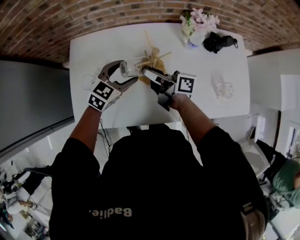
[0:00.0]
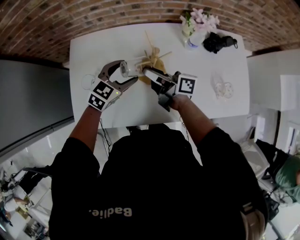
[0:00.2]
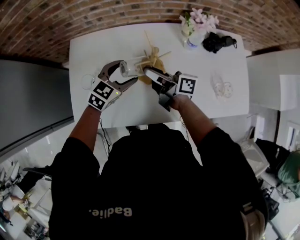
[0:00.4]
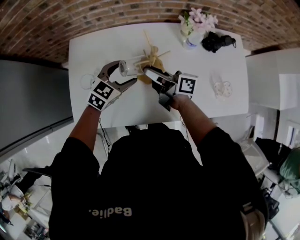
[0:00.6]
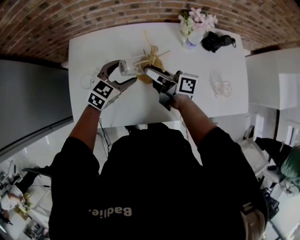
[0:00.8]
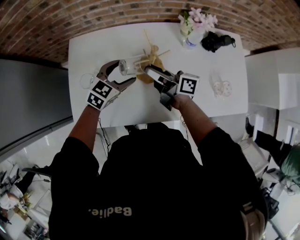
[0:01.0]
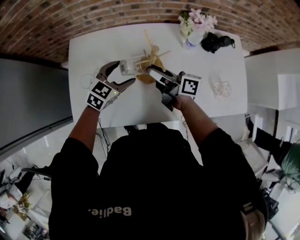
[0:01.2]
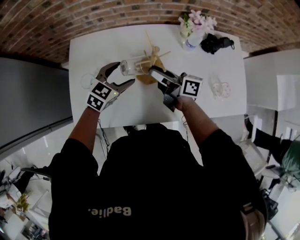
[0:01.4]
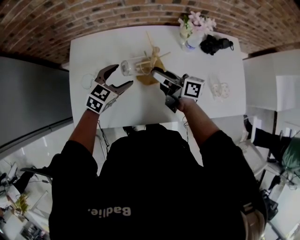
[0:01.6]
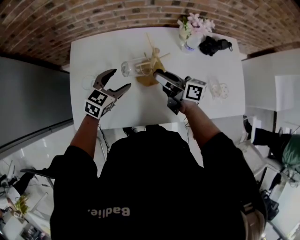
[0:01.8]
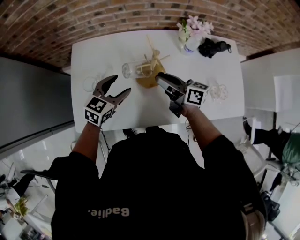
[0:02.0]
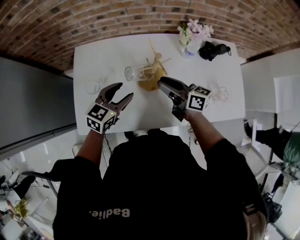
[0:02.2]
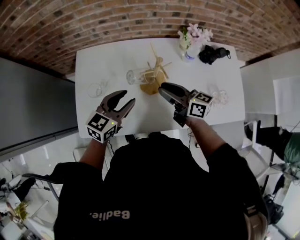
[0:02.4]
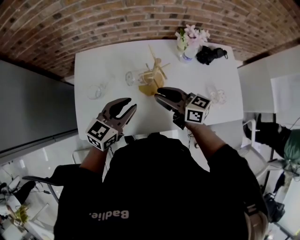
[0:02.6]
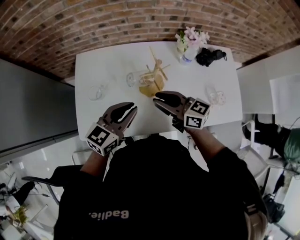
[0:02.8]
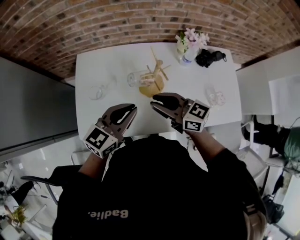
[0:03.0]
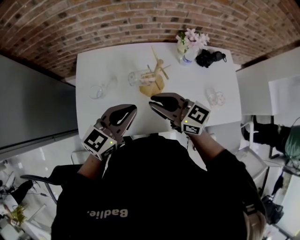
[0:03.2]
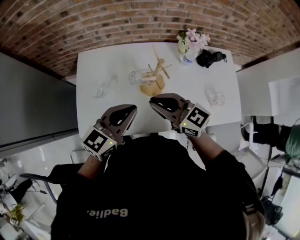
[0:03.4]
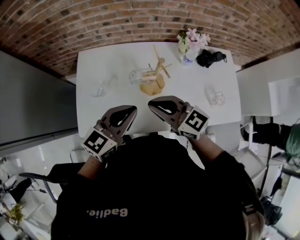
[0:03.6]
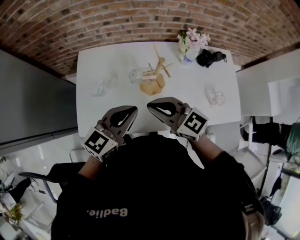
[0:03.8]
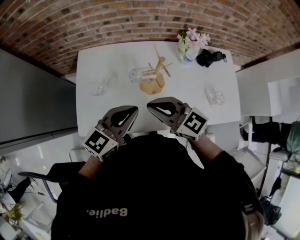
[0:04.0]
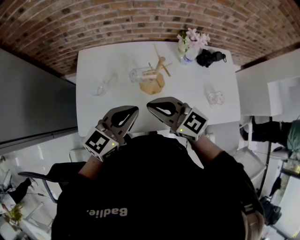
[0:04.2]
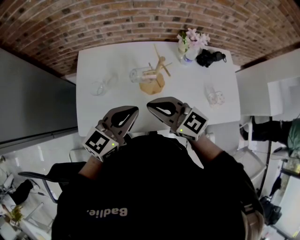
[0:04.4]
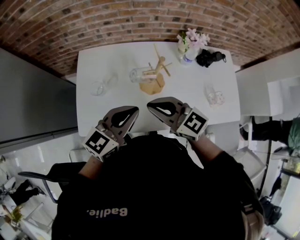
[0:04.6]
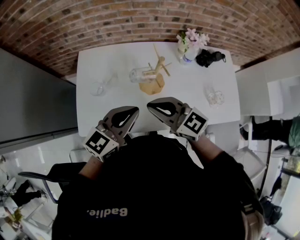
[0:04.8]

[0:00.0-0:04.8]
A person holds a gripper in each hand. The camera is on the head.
0:00.0 to 0:01.6: The grippers stay close to where they were, moving slightly.
0:01.6 to 0:03.2: The right gripper travels upward, backward and to the left by approximately 15 cm, and rotates around the line of its fingers by about 40 degrees, counterclockwise from behind. The left gripper heads upward and backward, covering approximately 20 cm, changes its angle by roughly 30 degrees, and closes.
0:03.2 to 0:04.8: The grippers move only a little.

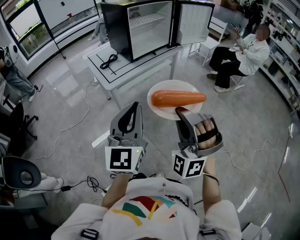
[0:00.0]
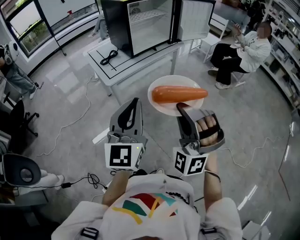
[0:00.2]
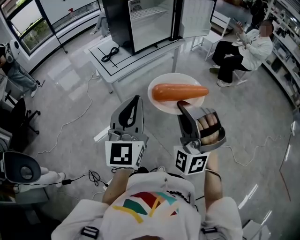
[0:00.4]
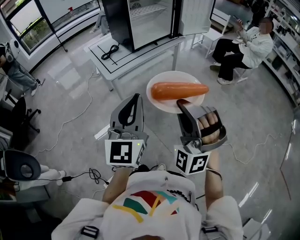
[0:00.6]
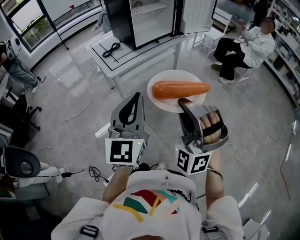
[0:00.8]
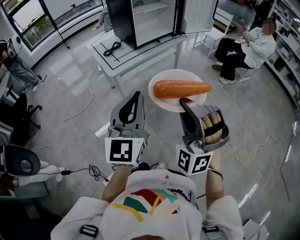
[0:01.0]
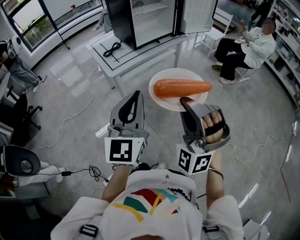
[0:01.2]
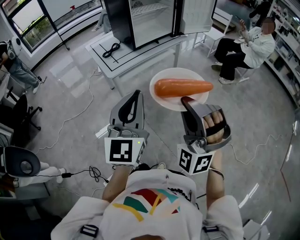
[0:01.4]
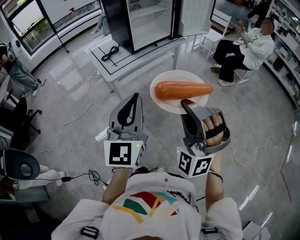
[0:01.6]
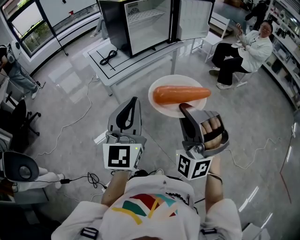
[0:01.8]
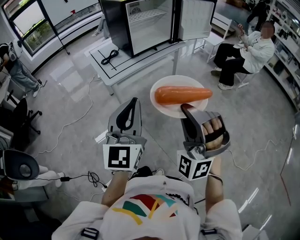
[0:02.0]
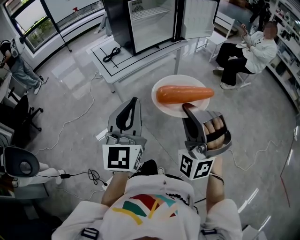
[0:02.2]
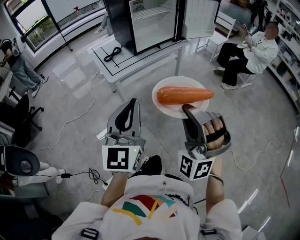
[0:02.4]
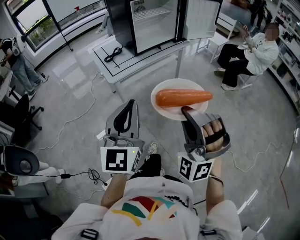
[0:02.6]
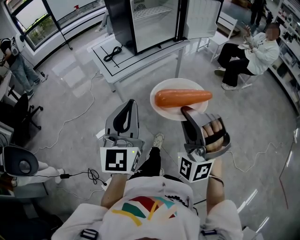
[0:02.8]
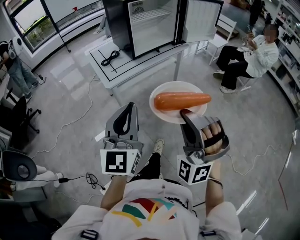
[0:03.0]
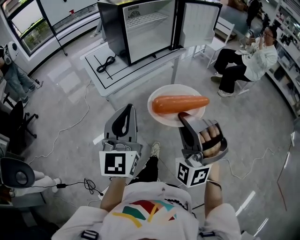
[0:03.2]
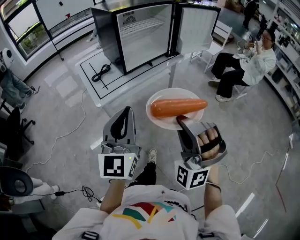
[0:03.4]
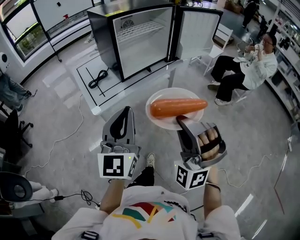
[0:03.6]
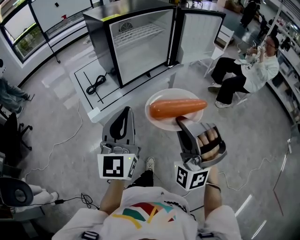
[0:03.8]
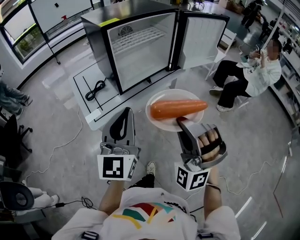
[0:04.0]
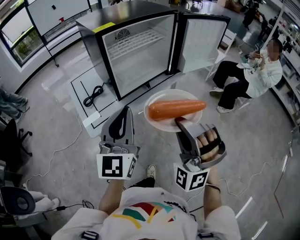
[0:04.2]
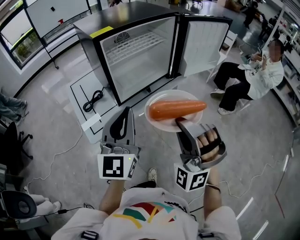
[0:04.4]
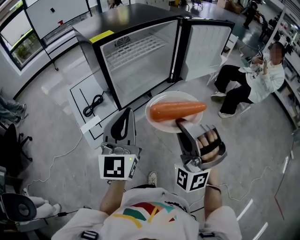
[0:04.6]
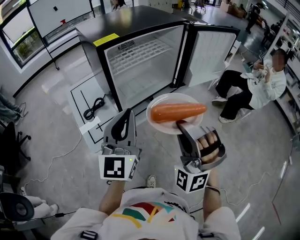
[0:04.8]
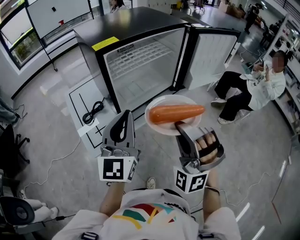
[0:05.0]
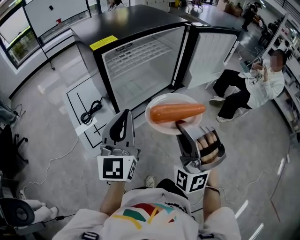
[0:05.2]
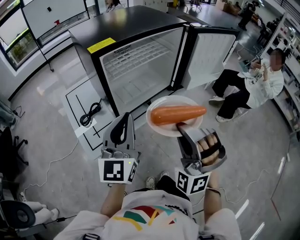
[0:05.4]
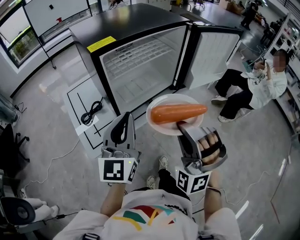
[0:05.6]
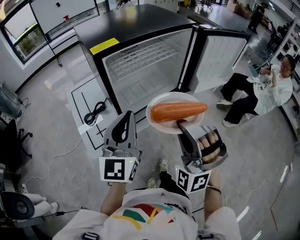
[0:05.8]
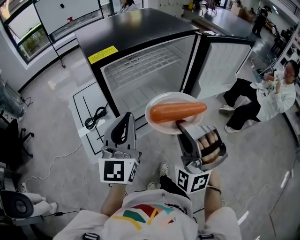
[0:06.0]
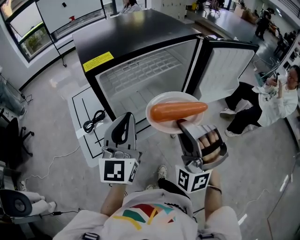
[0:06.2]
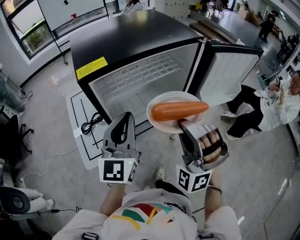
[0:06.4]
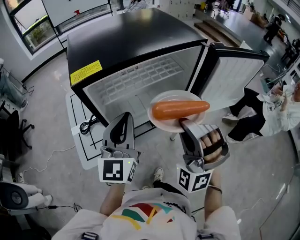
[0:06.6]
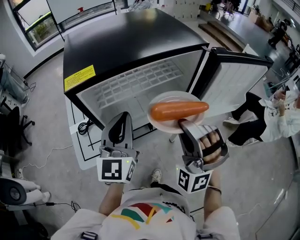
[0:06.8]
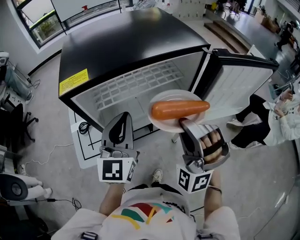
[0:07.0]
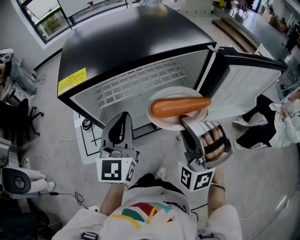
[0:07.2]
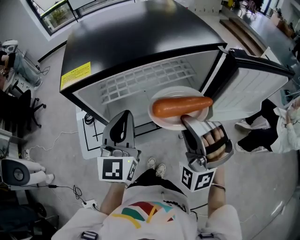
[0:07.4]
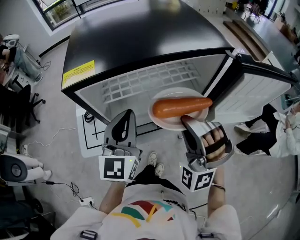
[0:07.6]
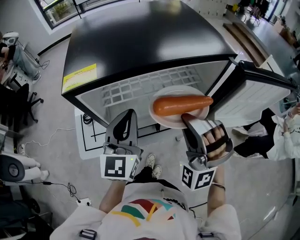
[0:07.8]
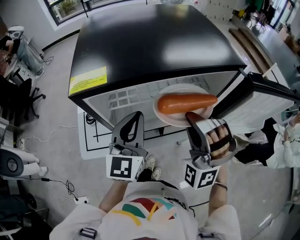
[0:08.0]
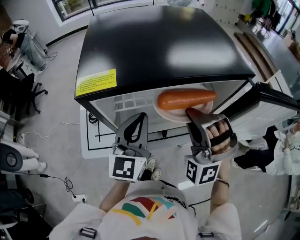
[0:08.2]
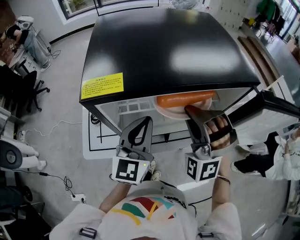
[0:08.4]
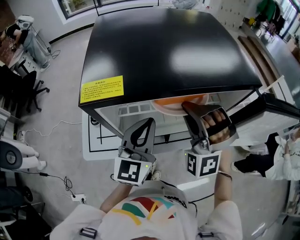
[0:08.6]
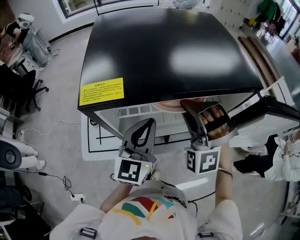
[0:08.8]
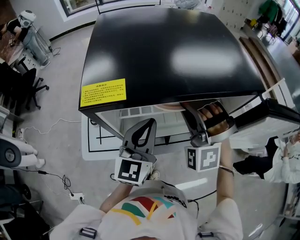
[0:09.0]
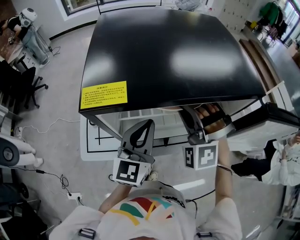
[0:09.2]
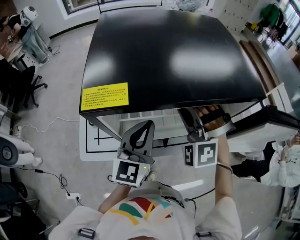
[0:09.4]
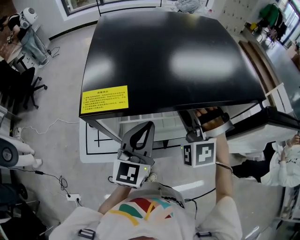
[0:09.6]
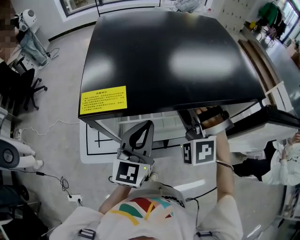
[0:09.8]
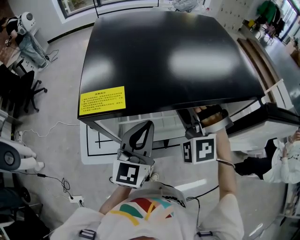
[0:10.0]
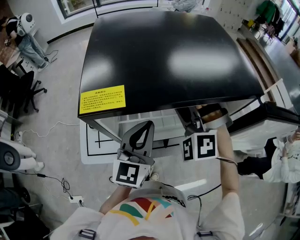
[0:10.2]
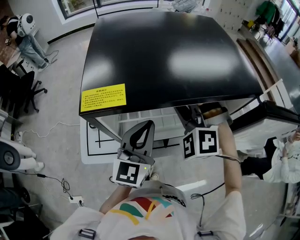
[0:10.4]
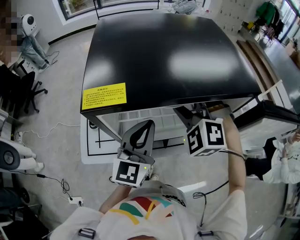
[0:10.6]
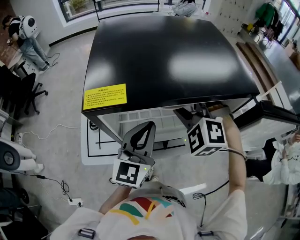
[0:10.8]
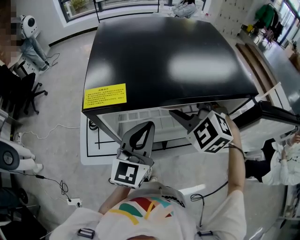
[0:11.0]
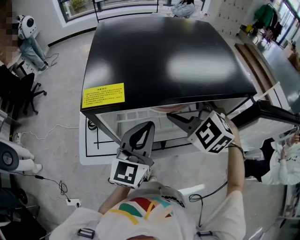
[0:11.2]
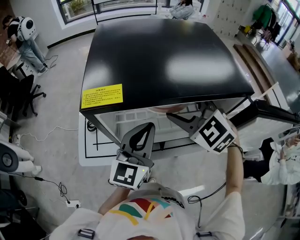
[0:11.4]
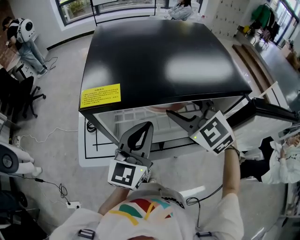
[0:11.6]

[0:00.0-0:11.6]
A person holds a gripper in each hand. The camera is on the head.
0:00.0 to 0:02.8: There are only small adjustments of the grippers.
0:02.8 to 0:04.4: The two grippers go some 35 cm forward.
0:04.4 to 0:05.8: Both grippers travel together forward, about 10 cm.
0:05.8 to 0:07.2: The grippers both shift forward by about 15 cm.
0:07.2 to 0:08.8: The right gripper goes some 15 cm forward and to the left, while the left gripper goes about 5 cm forward.
0:08.8 to 0:10.2: The grippers stay close to where they were, moving slightly.
0:10.2 to 0:11.6: The right gripper twists about 40 degrees clockwise, seen from behind, and opens its fingers.

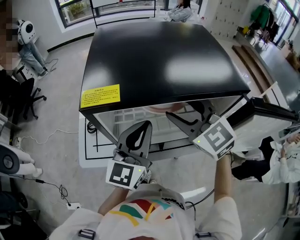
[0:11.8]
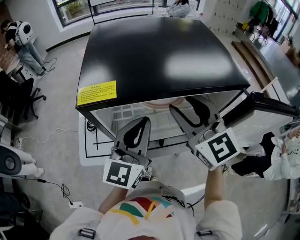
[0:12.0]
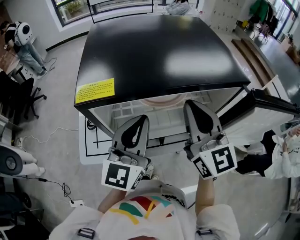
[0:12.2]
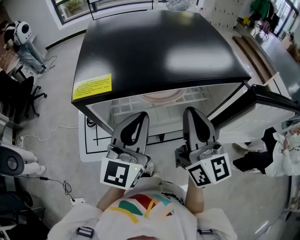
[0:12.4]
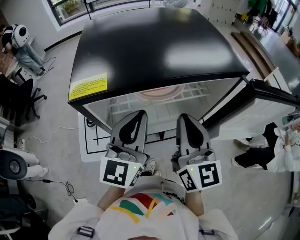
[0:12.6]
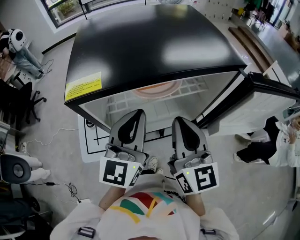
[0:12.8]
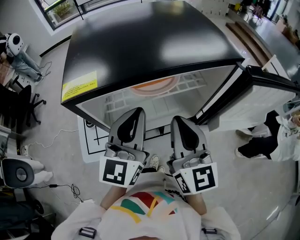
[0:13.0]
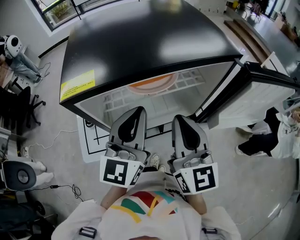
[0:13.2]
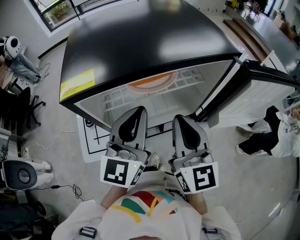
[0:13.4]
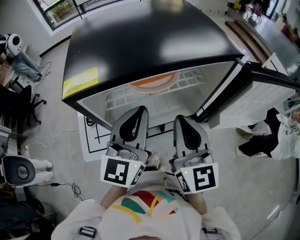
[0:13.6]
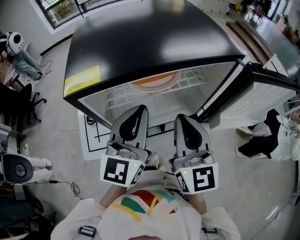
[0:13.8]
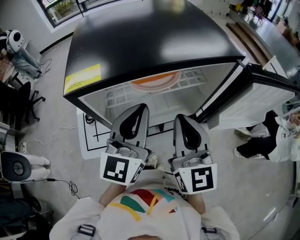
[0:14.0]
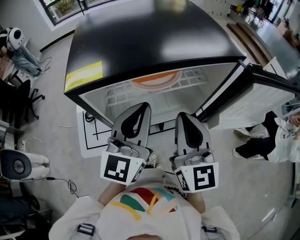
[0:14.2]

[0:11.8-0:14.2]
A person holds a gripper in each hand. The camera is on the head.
0:11.8 to 0:13.0: The right gripper shifts about 10 cm backward, rotates roughly 50 degrees, and closes.
0:13.0 to 0:14.2: The grippers move only a little.

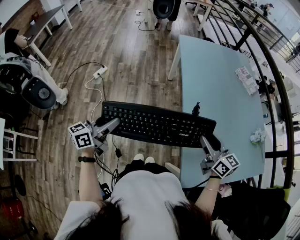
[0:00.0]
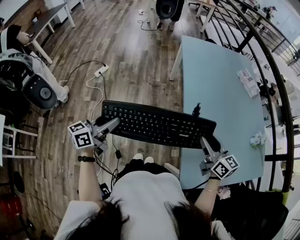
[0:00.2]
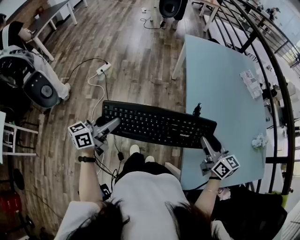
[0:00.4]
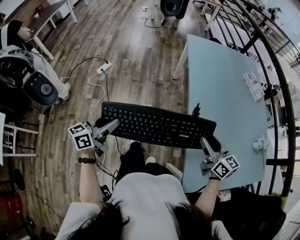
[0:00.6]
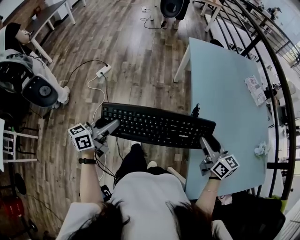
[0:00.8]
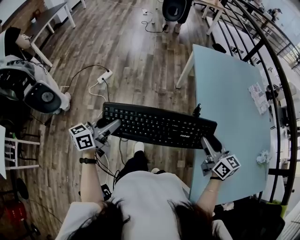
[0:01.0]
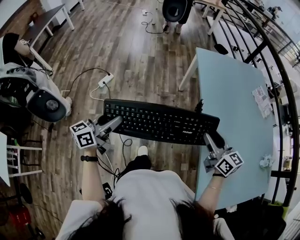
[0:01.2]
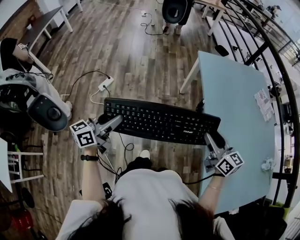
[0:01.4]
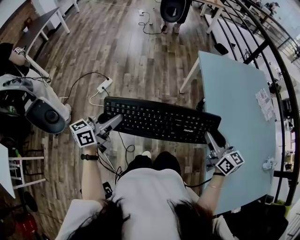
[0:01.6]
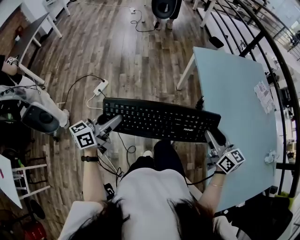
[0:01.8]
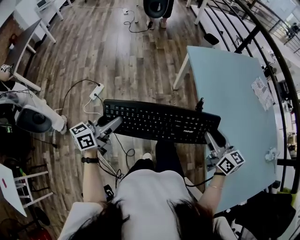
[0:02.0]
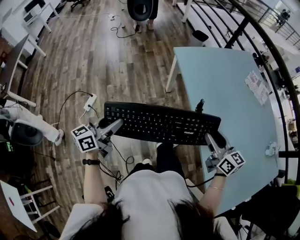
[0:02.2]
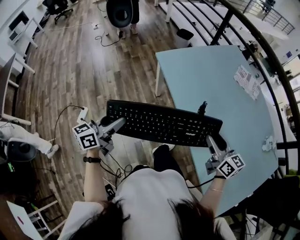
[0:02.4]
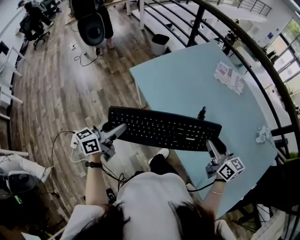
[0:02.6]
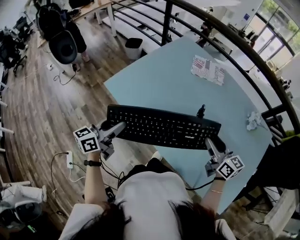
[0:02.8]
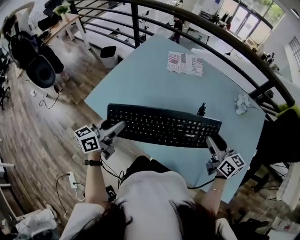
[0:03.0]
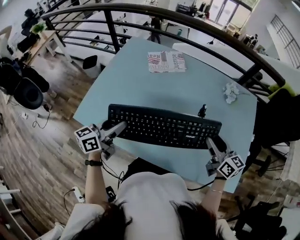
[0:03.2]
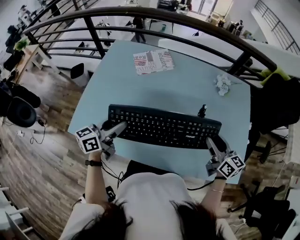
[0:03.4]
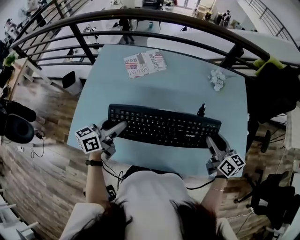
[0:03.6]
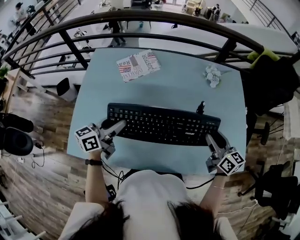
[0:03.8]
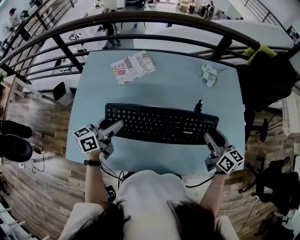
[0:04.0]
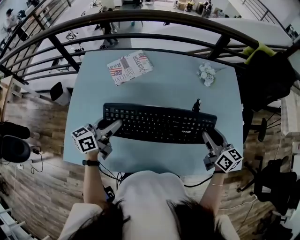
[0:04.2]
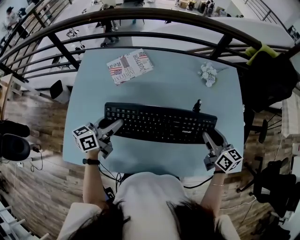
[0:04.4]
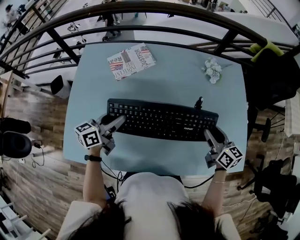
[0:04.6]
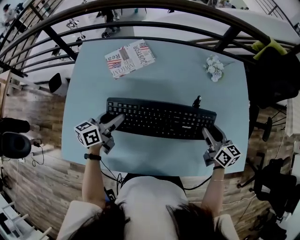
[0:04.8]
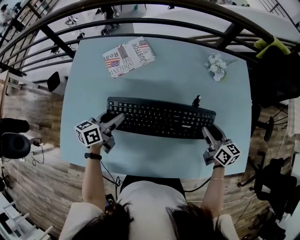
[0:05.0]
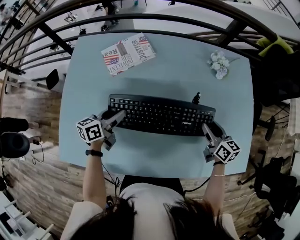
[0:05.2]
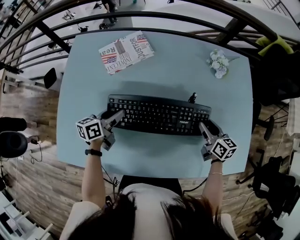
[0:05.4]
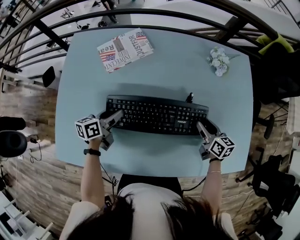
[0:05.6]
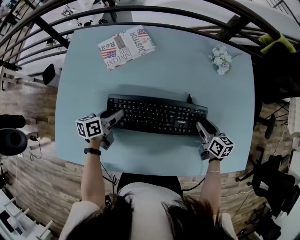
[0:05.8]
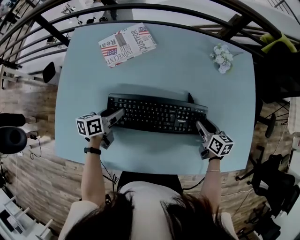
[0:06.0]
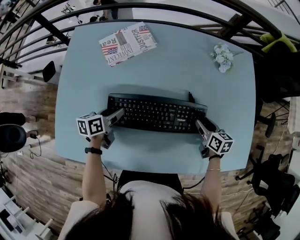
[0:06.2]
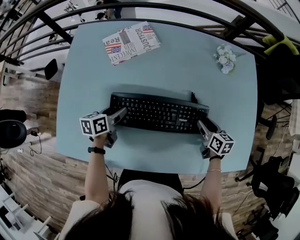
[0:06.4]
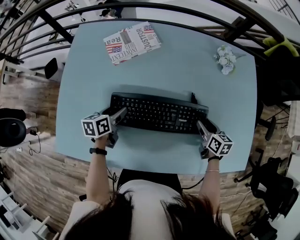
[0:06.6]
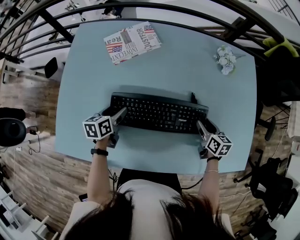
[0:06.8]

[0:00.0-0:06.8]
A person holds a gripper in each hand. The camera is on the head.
0:00.0 to 0:01.4: The grippers both shift forward and to the left by about 30 cm.
0:02.8 to 0:04.0: The left gripper travels backward and back again, about 15 cm each way.
0:04.0 to 0:05.4: Both grippers move downward and forward, roughly 15 cm.
0:05.4 to 0:06.8: The left gripper moves roughly 5 cm, and swivels roughly 20 degrees. Meanwhile the right gripper is displaced downward by roughly 5 cm.
